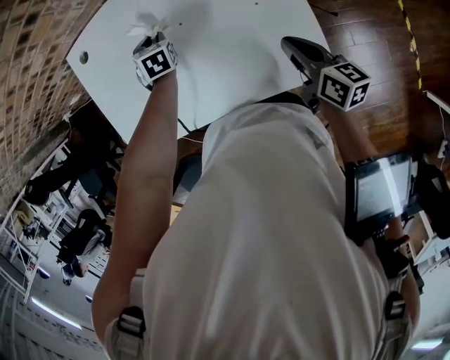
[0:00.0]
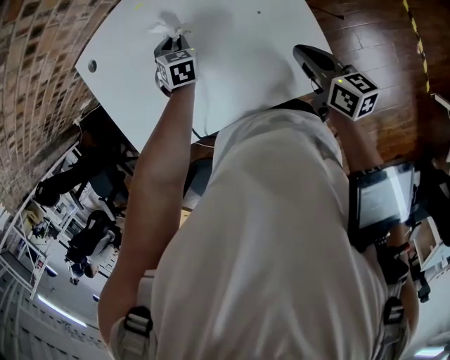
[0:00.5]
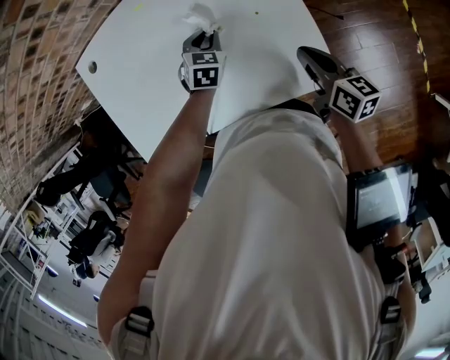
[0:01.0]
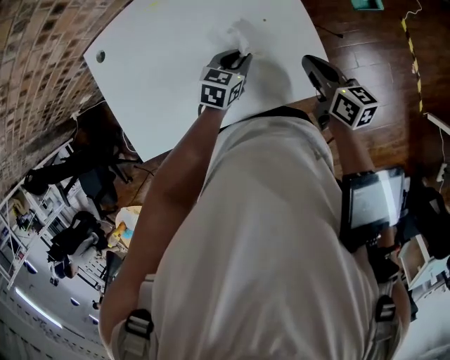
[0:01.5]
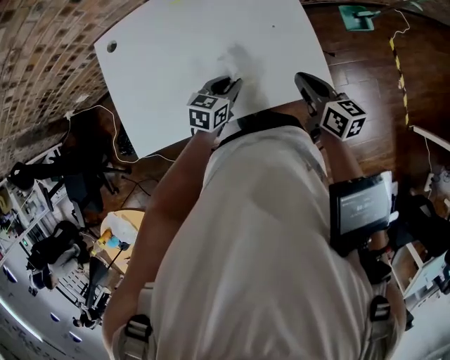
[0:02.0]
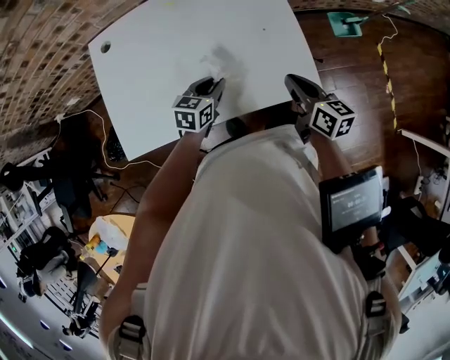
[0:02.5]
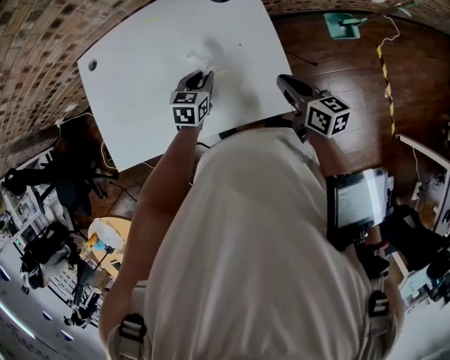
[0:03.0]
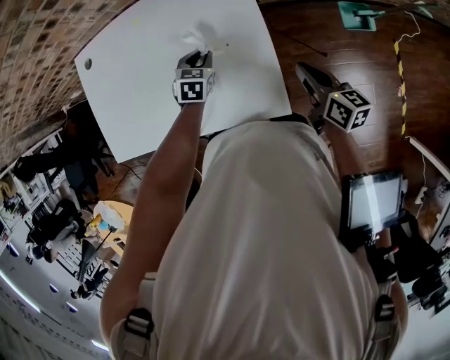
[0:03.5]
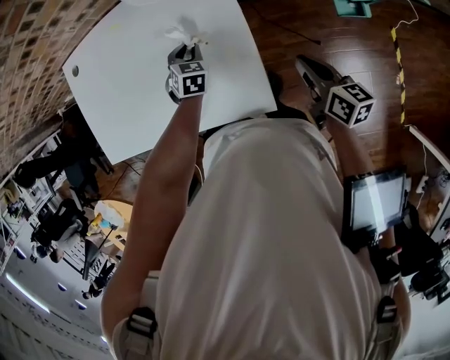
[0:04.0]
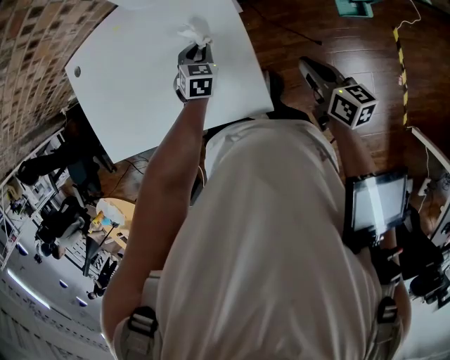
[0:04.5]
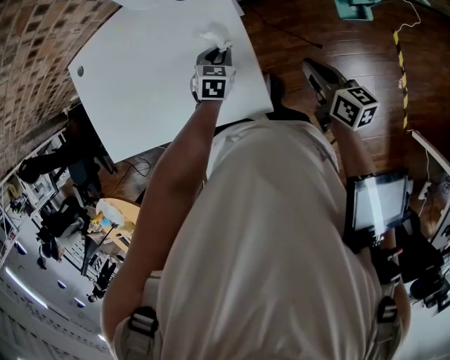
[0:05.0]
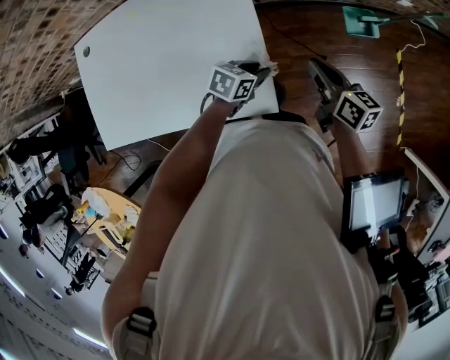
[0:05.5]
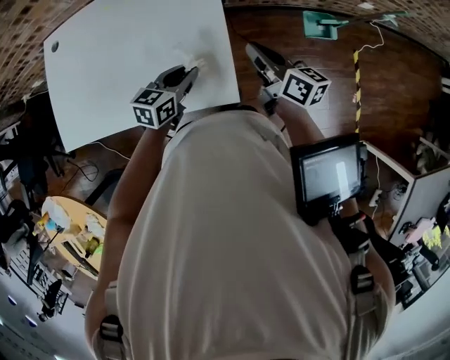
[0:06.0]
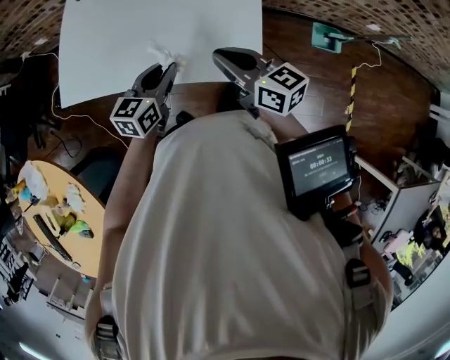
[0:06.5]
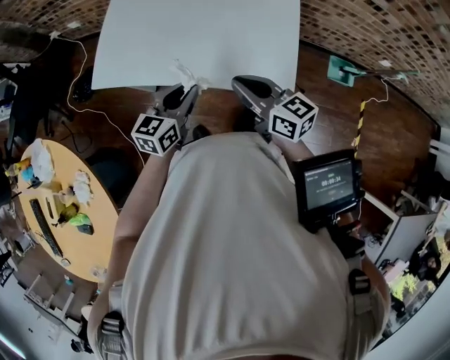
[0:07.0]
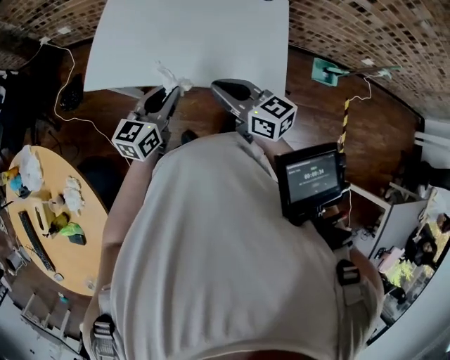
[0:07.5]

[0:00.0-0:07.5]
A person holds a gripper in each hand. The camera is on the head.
0:00.0 to 0:02.0: The left gripper shifts by about 25 cm, and changes its angle by about 40 degrees. Meanwhile the right gripper ends up some 10 cm from where it was.
0:02.0 to 0:04.0: The right gripper shifts by roughly 25 cm; the left gripper ends up approximately 20 cm from where it was, and swivels about 40 degrees.
0:04.0 to 0:05.5: The left gripper changes place by approximately 20 cm, and swivels some 50 degrees.
0:05.5 to 0:07.5: The pair of grippers is taken about 50 cm. The left gripper points its fingers about 30 degrees further upward. The right gripper swivels approximately 40 degrees.

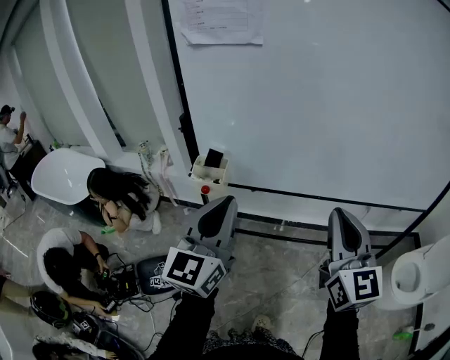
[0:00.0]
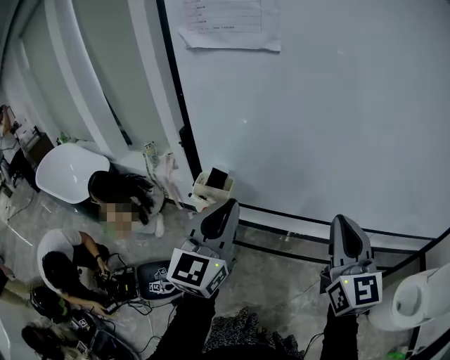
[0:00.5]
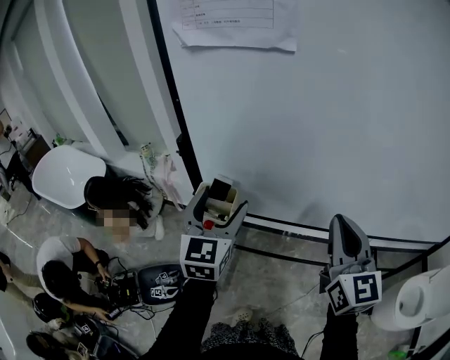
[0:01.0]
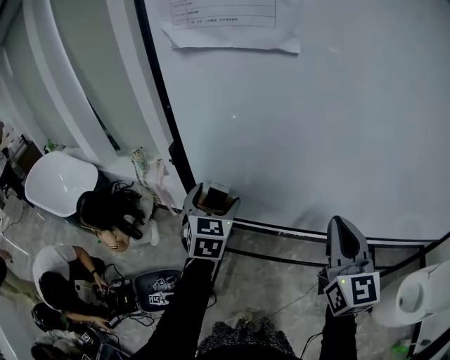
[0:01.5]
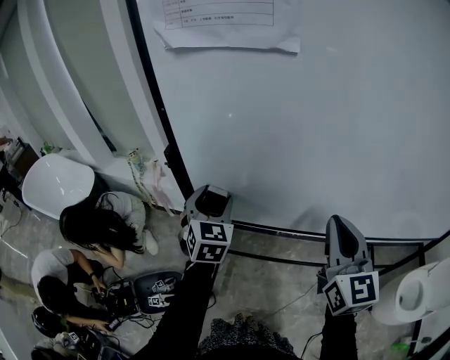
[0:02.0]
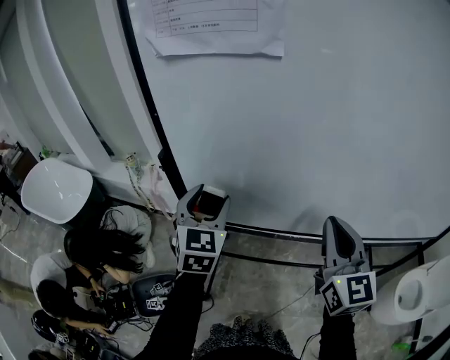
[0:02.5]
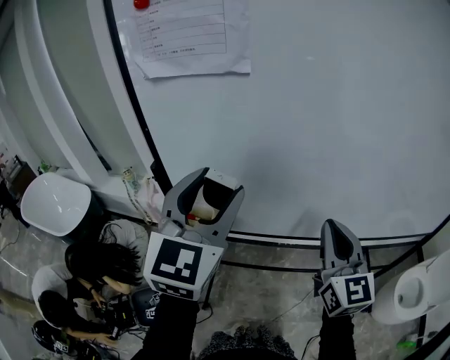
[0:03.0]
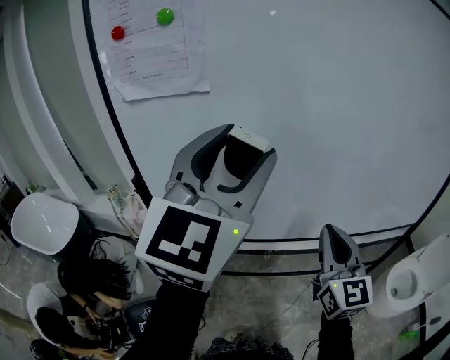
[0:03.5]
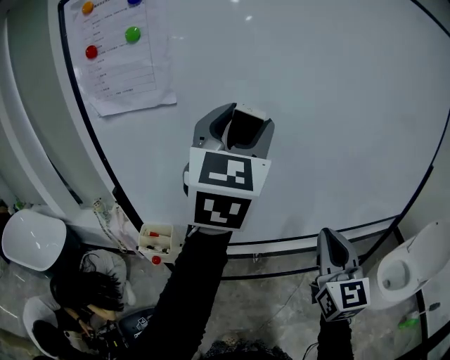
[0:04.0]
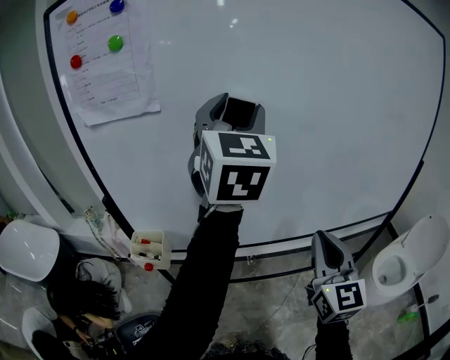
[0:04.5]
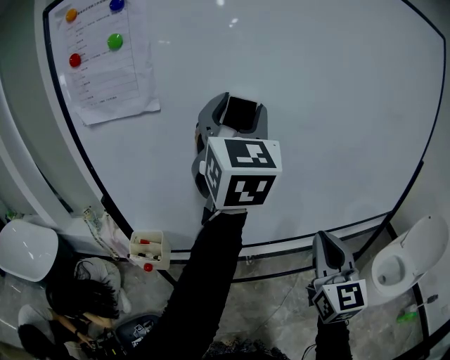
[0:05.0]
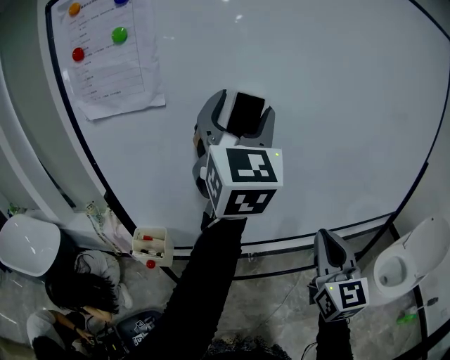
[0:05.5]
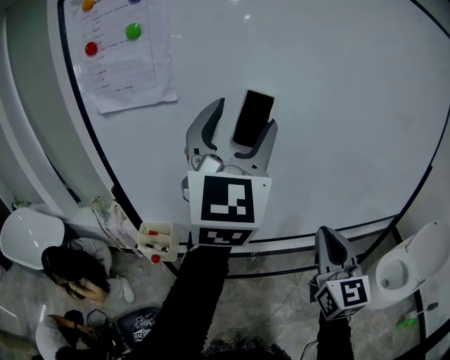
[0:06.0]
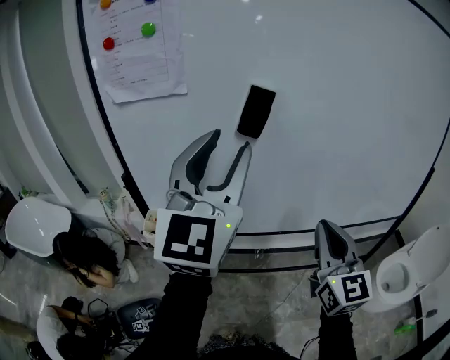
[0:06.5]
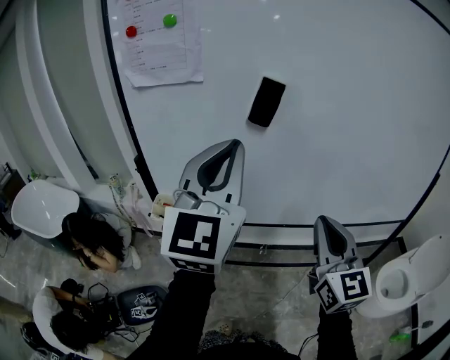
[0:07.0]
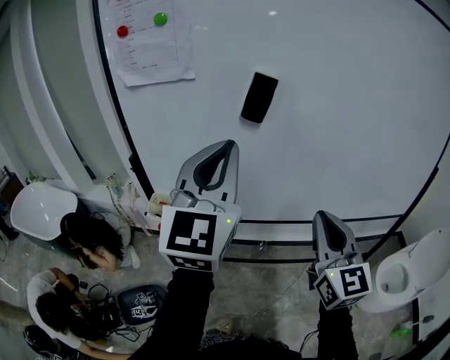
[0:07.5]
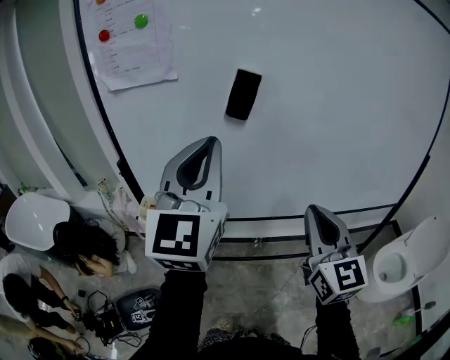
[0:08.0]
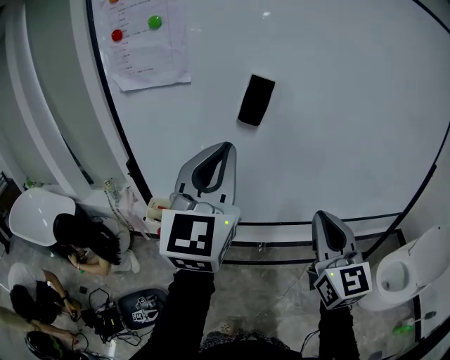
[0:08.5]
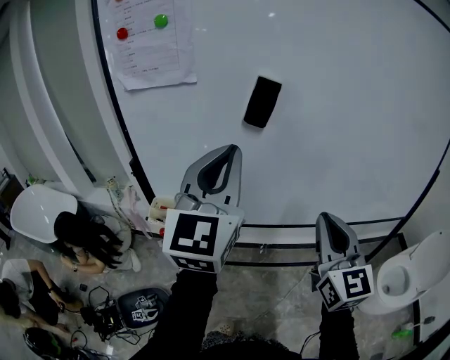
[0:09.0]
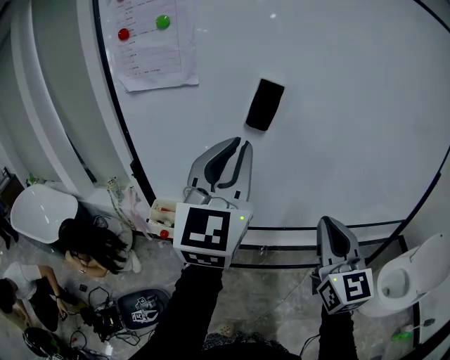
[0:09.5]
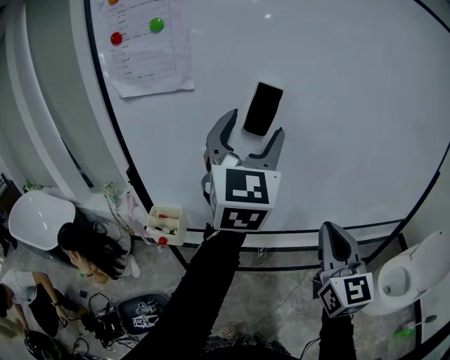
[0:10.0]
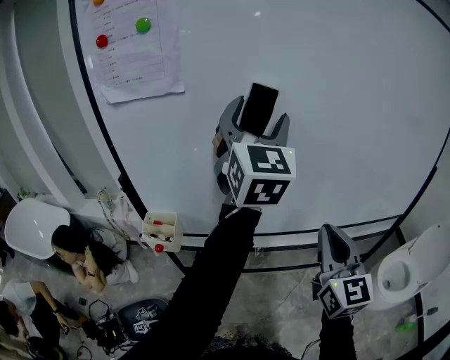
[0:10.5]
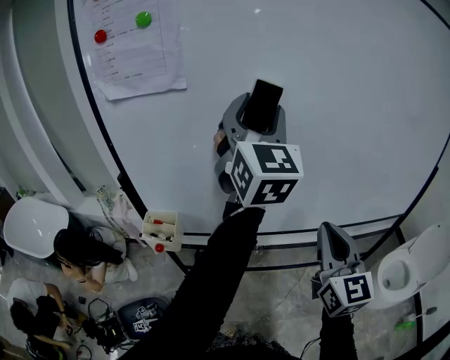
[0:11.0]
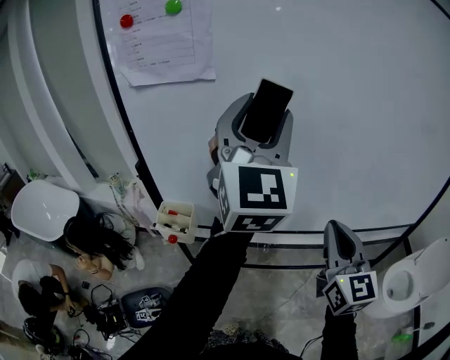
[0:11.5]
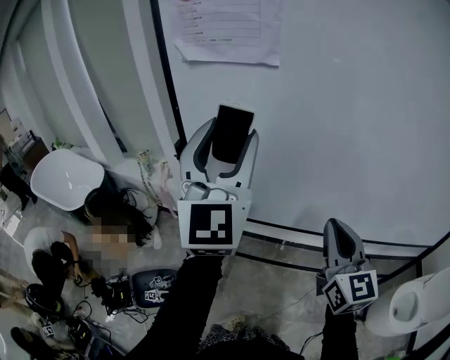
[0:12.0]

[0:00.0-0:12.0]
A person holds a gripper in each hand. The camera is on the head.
0:00.0 to 0:02.0: The left gripper shifts about 30 cm forward and downward, rotates approximately 40 degrees, and opens up; the right gripper is displaced forward by roughly 20 cm.
0:02.0 to 0:04.0: The left gripper heads upward and to the right, covering some 50 cm, and swivels roughly 40 degrees, while the right gripper travels to the right and backward by roughly 20 cm.
0:04.0 to 0:06.0: The grippers stay close to where they were, moving slightly.
0:06.0 to 0:08.0: The left gripper shifts some 10 cm backward and downward, and closes up.
0:08.0 to 0:10.0: The left gripper moves forward, approximately 10 cm, and opens its fingers.
0:10.0 to 0:12.0: The right gripper shifts roughly 15 cm to the left and forward. Meanwhile the left gripper goes some 20 cm to the left.

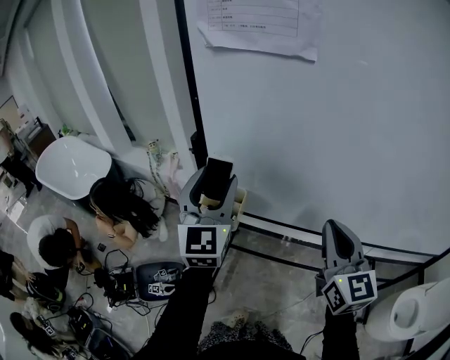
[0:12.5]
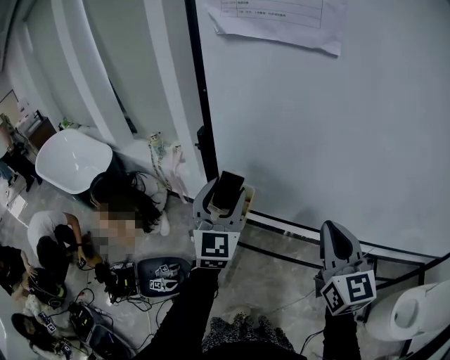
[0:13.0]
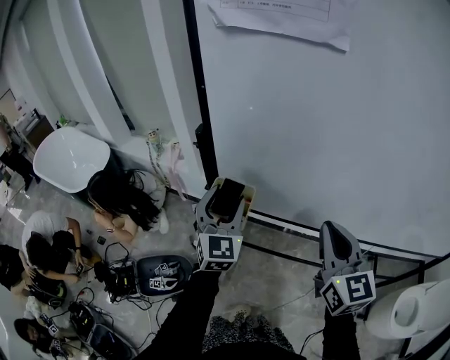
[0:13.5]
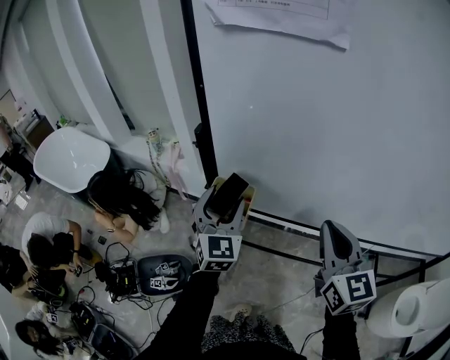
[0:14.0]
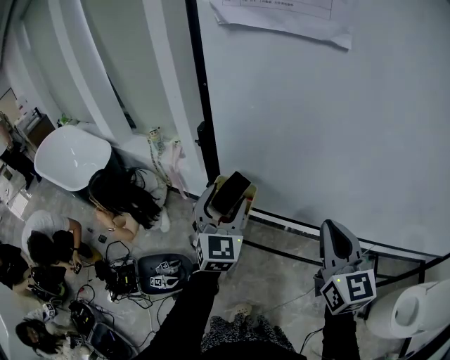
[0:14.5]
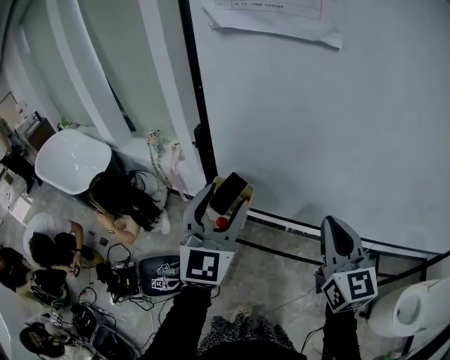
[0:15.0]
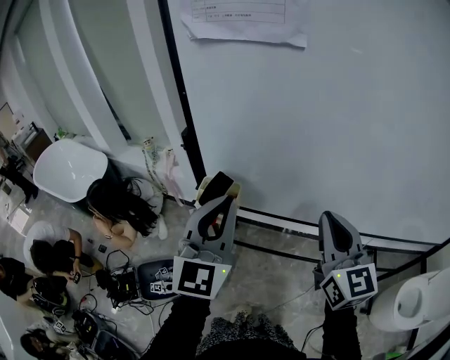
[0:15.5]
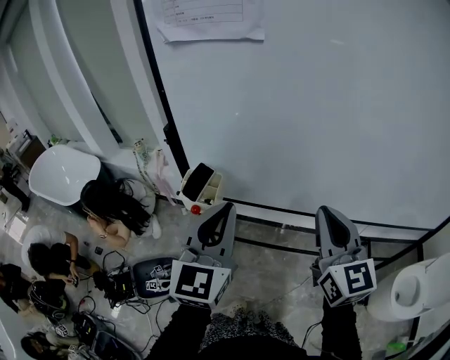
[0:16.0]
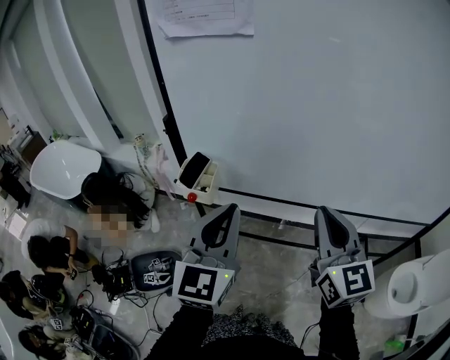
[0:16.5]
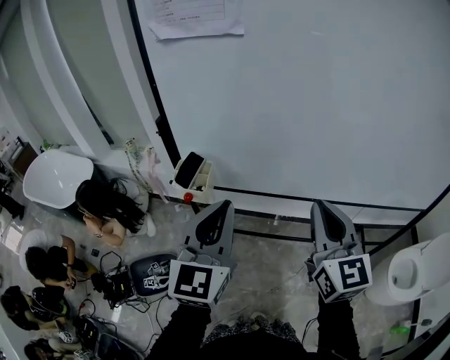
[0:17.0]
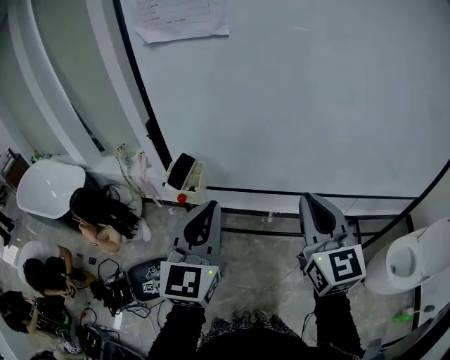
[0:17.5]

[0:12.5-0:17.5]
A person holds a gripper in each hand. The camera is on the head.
0:12.5 to 0:15.0: The left gripper moves about 15 cm downward and comes back.
0:15.0 to 0:17.5: Both grippers move backward and to the right, some 15 cm. The left gripper closes.

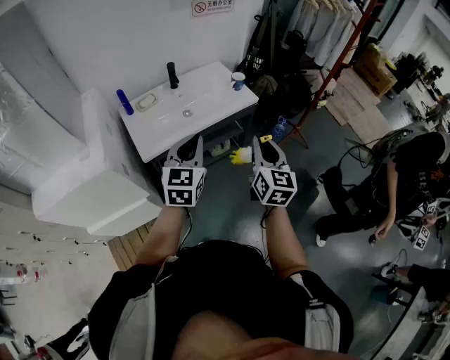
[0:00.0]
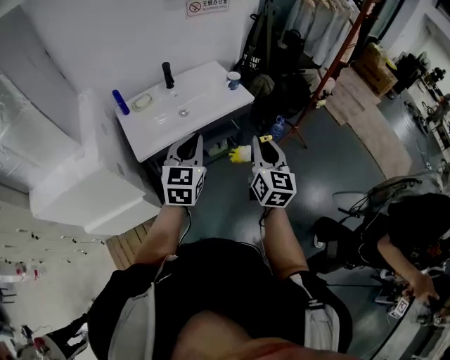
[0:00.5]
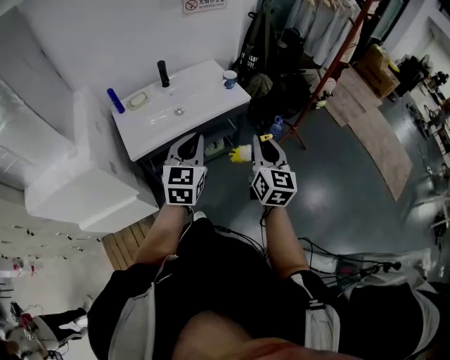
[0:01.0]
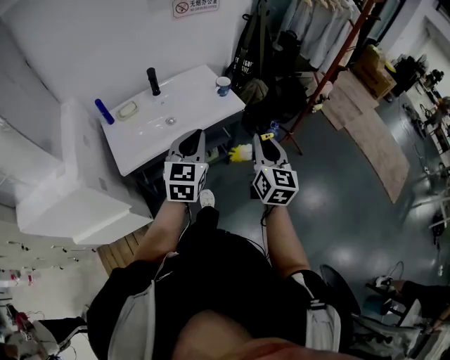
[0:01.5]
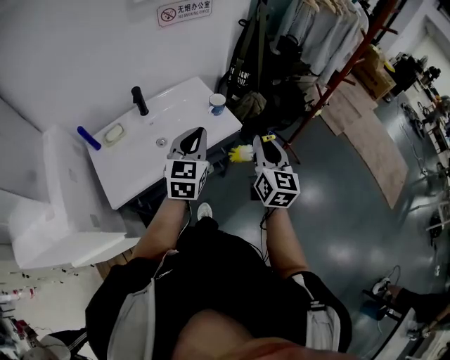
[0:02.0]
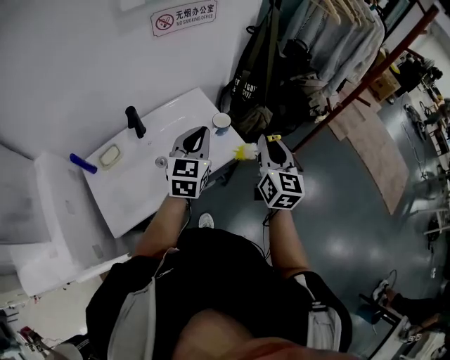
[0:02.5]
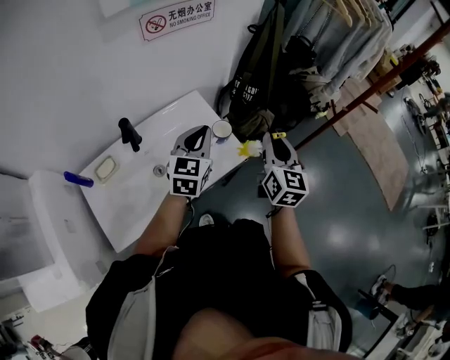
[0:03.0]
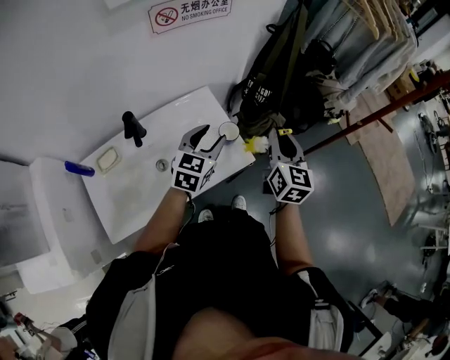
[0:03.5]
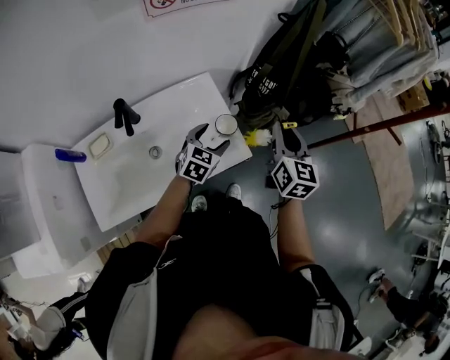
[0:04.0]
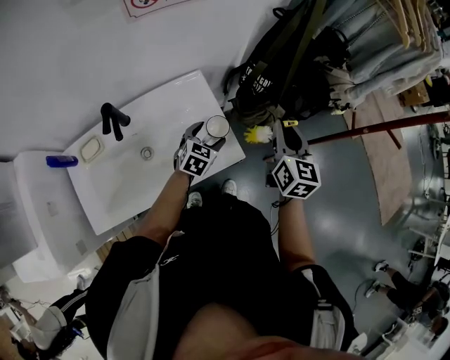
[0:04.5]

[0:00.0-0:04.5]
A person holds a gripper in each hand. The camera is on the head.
0:00.0 to 0:02.0: The grippers both shift forward by approximately 25 cm.
0:02.0 to 0:04.5: The right gripper is displaced forward by roughly 30 cm. Meanwhile the left gripper heads forward and downward, covering roughly 40 cm, swivels roughly 30 degrees, and opens up.
